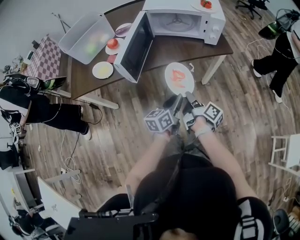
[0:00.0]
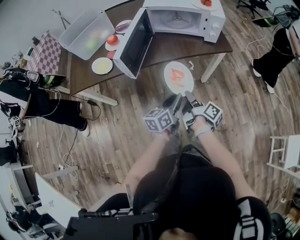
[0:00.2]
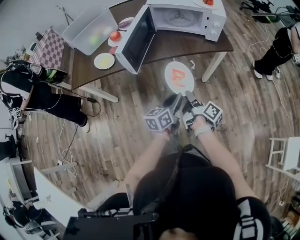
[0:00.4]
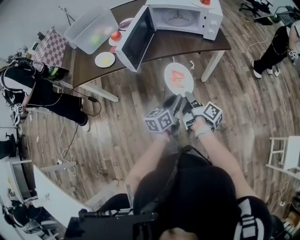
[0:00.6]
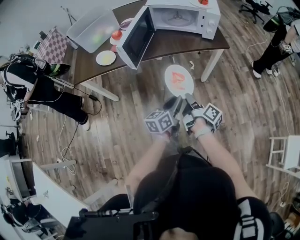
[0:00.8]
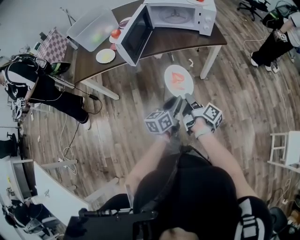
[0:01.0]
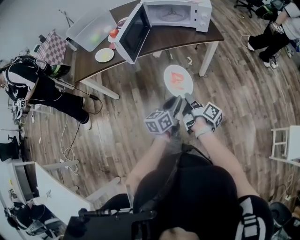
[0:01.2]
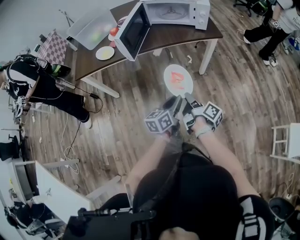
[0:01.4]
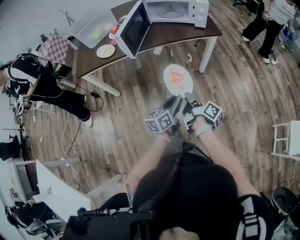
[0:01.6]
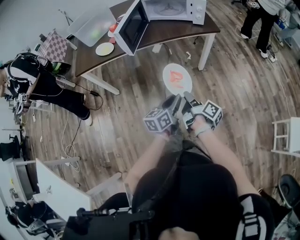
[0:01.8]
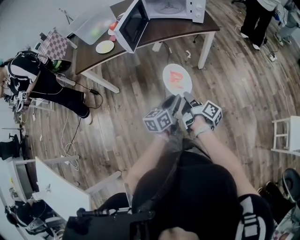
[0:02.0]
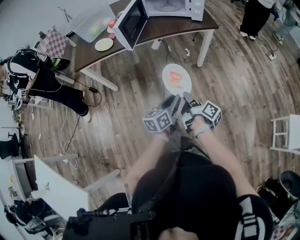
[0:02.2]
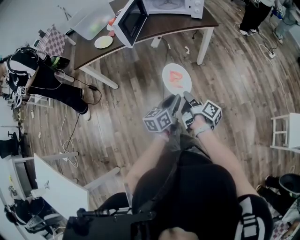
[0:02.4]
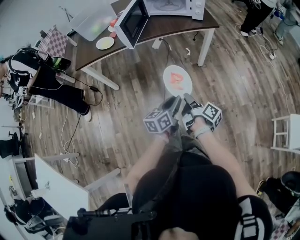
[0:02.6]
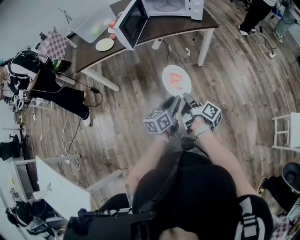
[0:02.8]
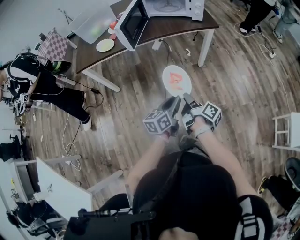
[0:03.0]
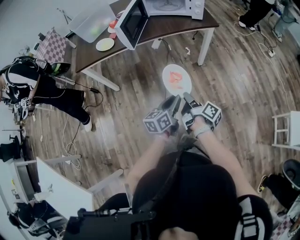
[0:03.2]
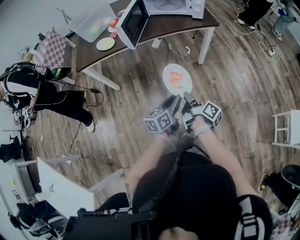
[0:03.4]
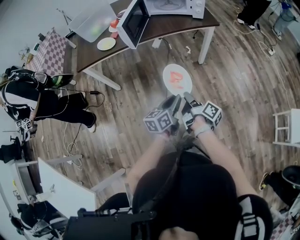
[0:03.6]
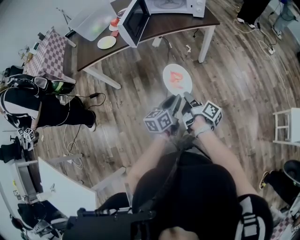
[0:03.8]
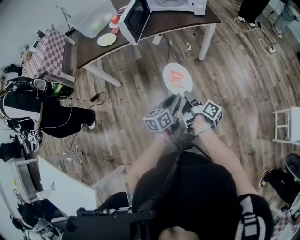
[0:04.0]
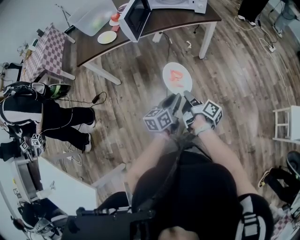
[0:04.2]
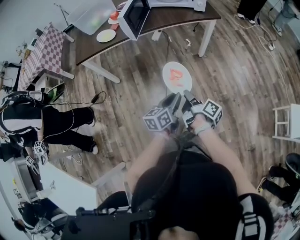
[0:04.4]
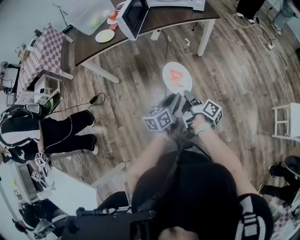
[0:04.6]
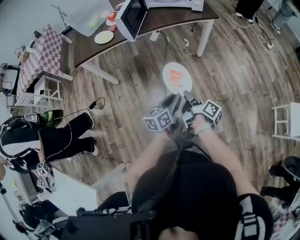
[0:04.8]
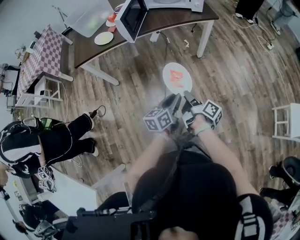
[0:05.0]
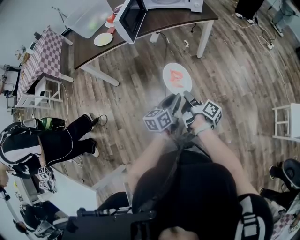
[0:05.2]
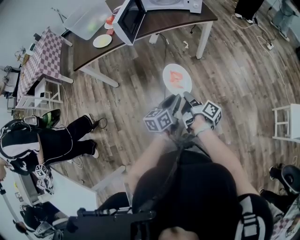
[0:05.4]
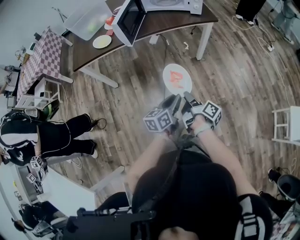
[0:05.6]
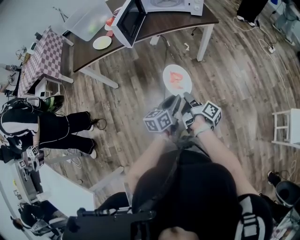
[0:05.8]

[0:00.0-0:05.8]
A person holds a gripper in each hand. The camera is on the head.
0:00.0 to 0:01.4: The two grippers go some 15 cm backward.
0:01.4 to 0:02.8: The two grippers go approximately 10 cm backward.
0:02.8 to 0:04.4: The left gripper moves about 5 cm. Meanwhile the right gripper ends up some 5 cm from where it was.
0:04.4 to 0:05.8: The grippers make only small movements.

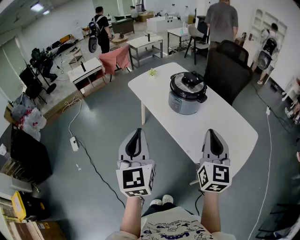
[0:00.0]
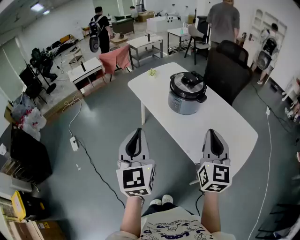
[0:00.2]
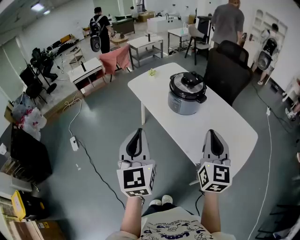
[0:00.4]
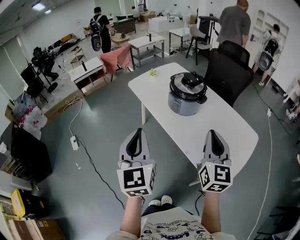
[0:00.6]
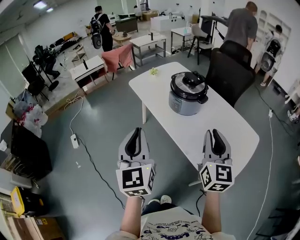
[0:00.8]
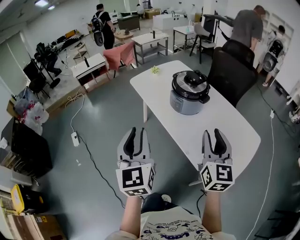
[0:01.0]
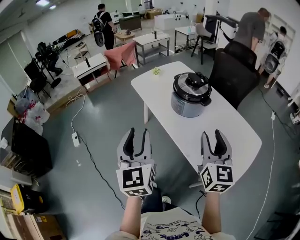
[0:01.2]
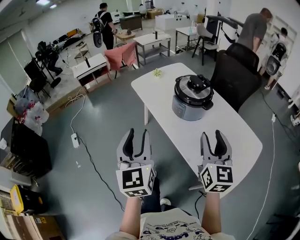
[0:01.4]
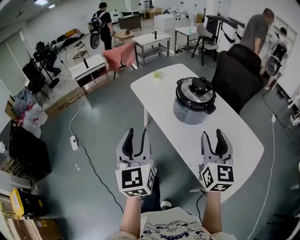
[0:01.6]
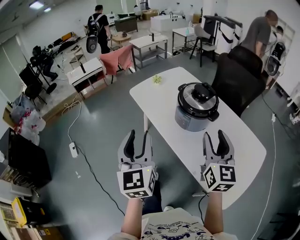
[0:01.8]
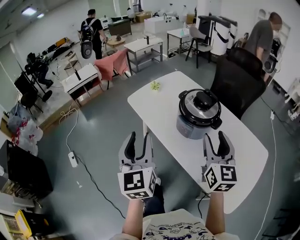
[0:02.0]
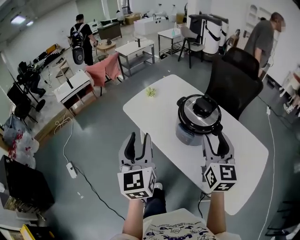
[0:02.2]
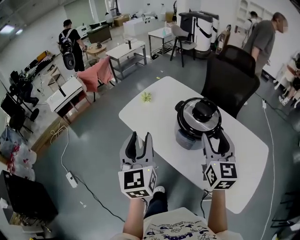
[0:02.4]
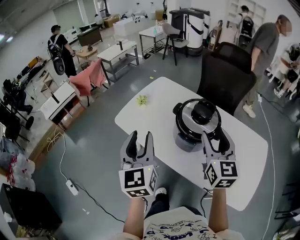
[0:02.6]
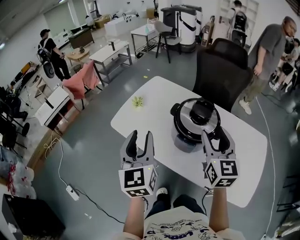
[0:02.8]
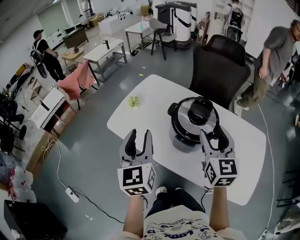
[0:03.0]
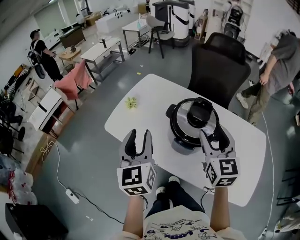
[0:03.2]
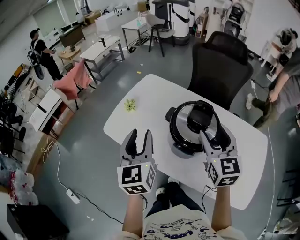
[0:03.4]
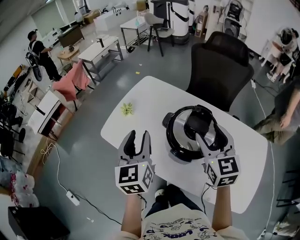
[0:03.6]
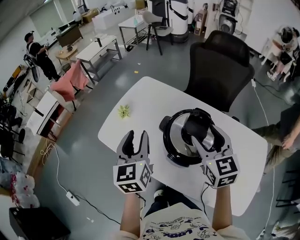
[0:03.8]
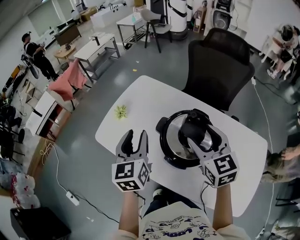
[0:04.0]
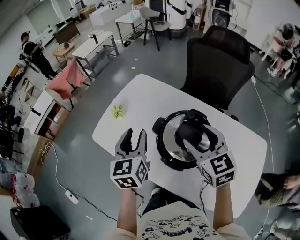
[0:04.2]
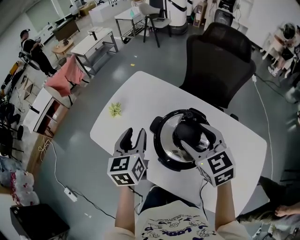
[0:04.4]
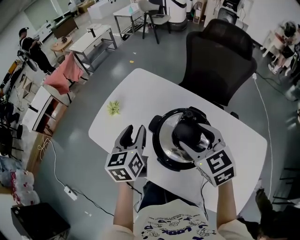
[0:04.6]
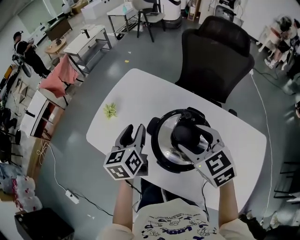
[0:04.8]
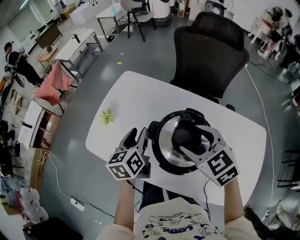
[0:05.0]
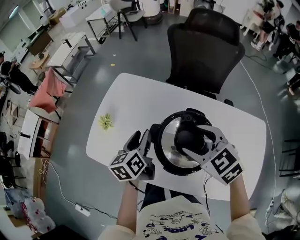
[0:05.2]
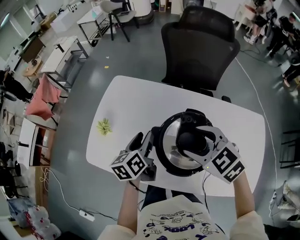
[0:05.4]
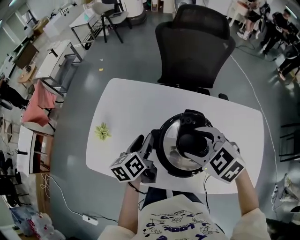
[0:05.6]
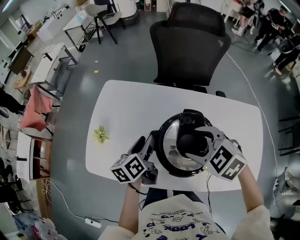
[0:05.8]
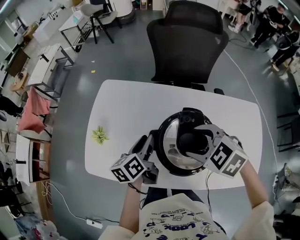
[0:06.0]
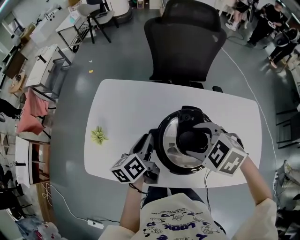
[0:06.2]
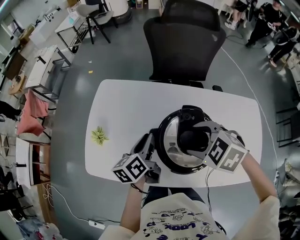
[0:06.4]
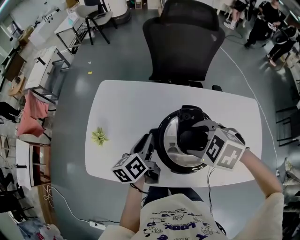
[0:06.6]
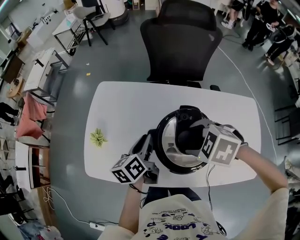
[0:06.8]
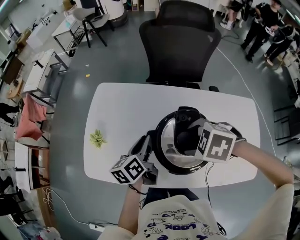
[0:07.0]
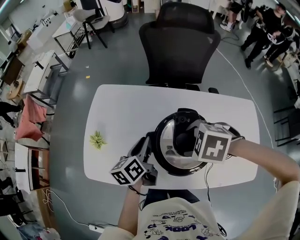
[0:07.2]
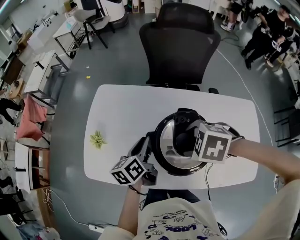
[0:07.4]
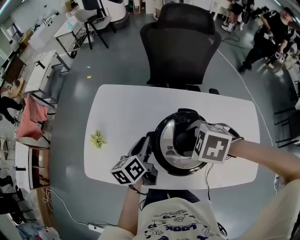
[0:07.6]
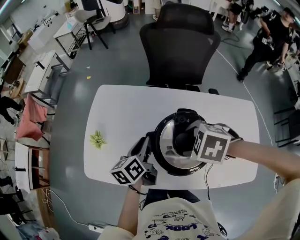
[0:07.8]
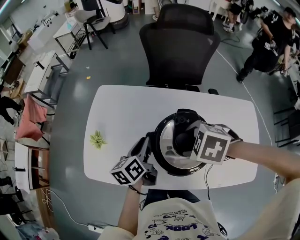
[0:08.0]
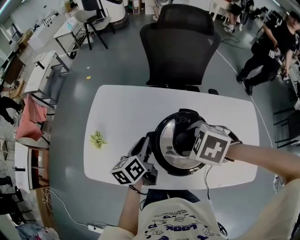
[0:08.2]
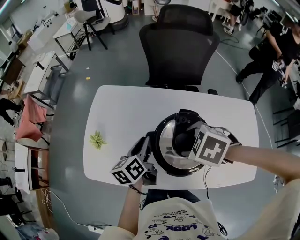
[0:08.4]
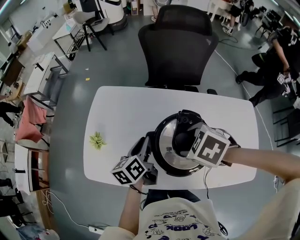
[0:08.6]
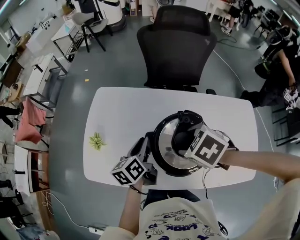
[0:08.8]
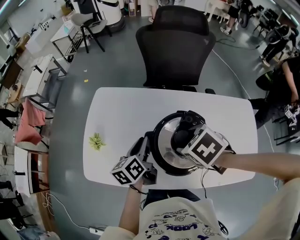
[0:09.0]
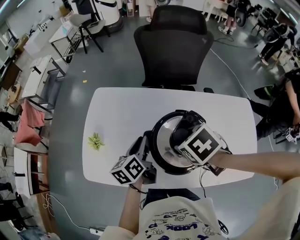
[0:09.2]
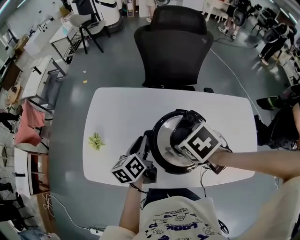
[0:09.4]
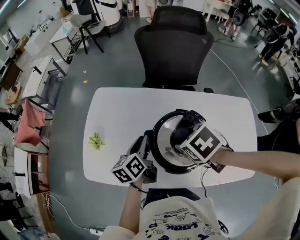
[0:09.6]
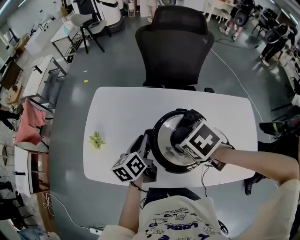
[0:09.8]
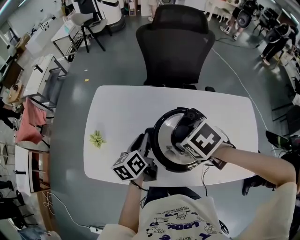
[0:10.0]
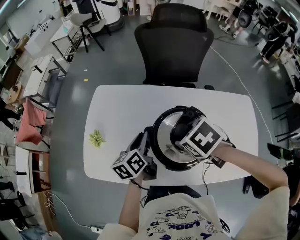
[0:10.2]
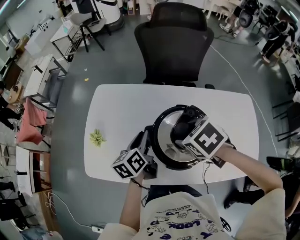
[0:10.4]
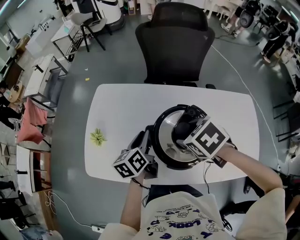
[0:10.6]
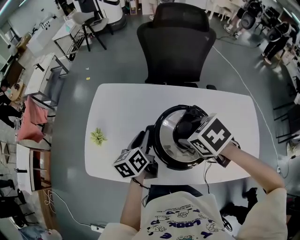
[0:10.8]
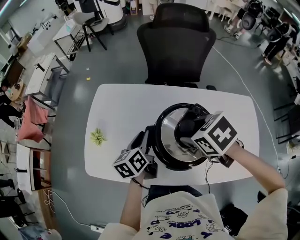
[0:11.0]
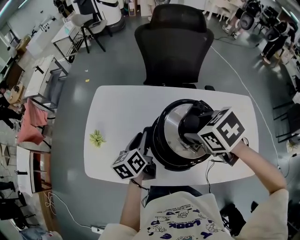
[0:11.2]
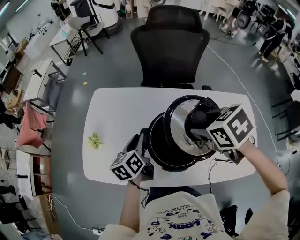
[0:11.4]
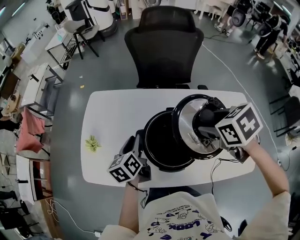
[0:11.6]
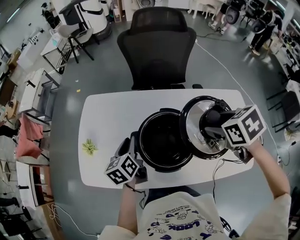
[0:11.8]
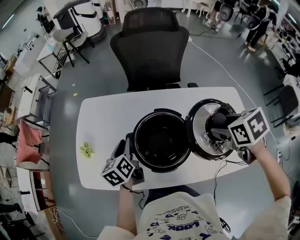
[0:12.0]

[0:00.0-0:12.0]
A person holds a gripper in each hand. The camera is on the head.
0:00.0 to 0:01.6: The grippers both shift forward by roughly 10 cm. The right gripper opens up. The left gripper opens its fingers.
0:01.6 to 0:03.0: Both grippers move forward, approximately 35 cm. The right gripper turns by approximately 20 degrees. The left gripper rotates about 30 degrees.
0:03.0 to 0:04.4: The right gripper travels forward and downward by roughly 15 cm, and rotates approximately 30 degrees, while the left gripper goes roughly 20 cm forward, downward and to the right.
0:04.4 to 0:06.0: The left gripper heads downward, forward and to the right, covering approximately 15 cm, and turns by some 40 degrees; the right gripper travels downward by some 5 cm, and rotates about 30 degrees.
0:06.0 to 0:07.6: The right gripper rotates some 20 degrees.
0:07.6 to 0:09.0: The right gripper turns by approximately 30 degrees.
0:09.0 to 0:10.4: The grippers make only small movements.
0:10.4 to 0:12.0: The right gripper is displaced to the right by some 20 cm, and changes its angle by roughly 30 degrees.

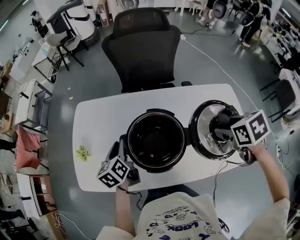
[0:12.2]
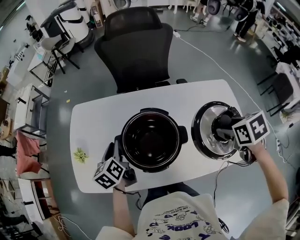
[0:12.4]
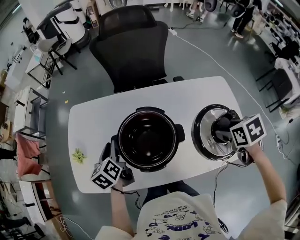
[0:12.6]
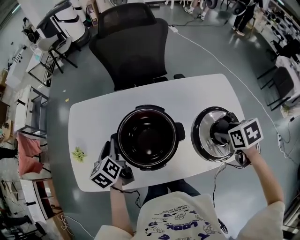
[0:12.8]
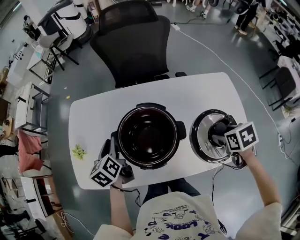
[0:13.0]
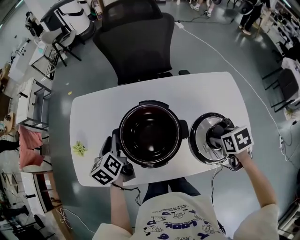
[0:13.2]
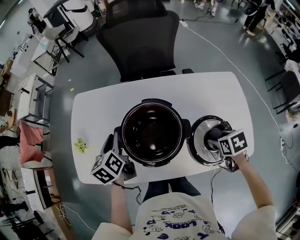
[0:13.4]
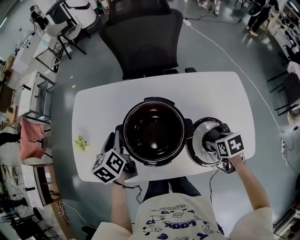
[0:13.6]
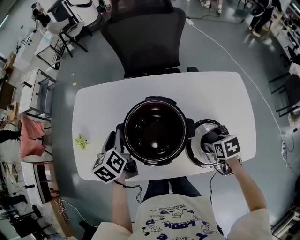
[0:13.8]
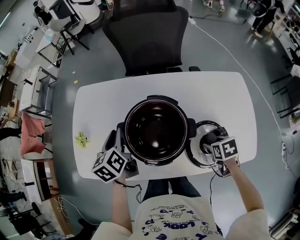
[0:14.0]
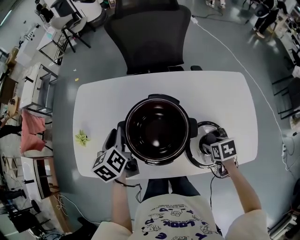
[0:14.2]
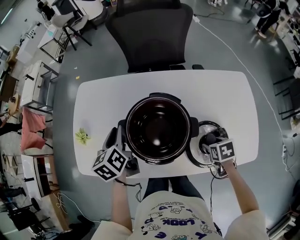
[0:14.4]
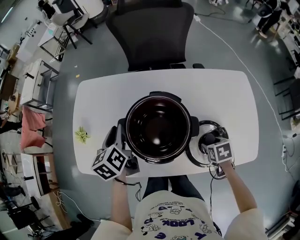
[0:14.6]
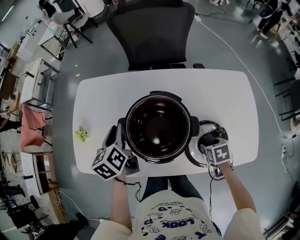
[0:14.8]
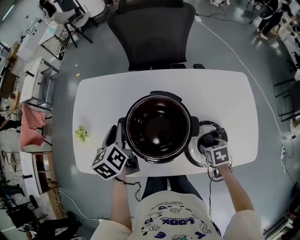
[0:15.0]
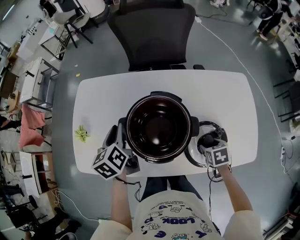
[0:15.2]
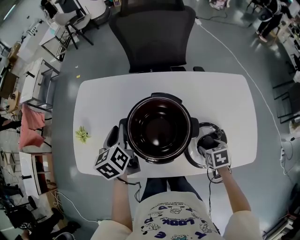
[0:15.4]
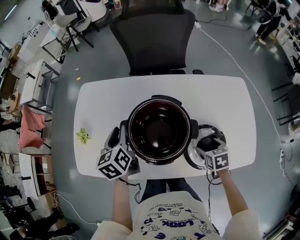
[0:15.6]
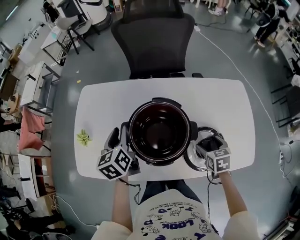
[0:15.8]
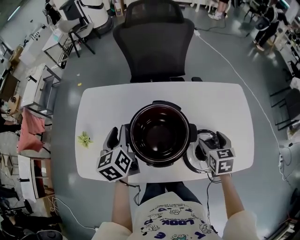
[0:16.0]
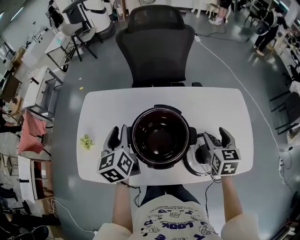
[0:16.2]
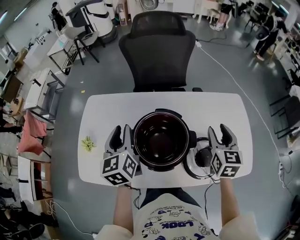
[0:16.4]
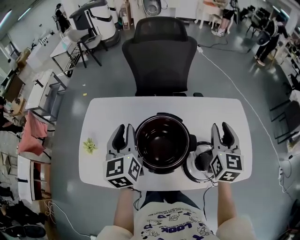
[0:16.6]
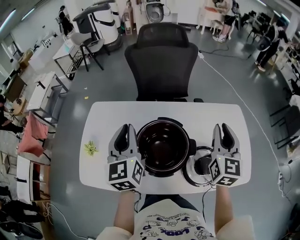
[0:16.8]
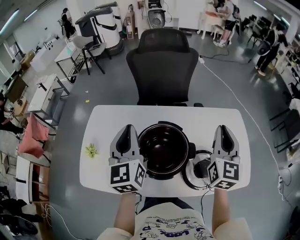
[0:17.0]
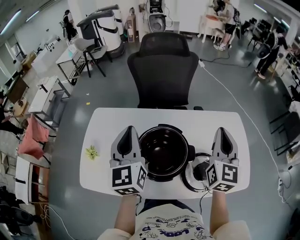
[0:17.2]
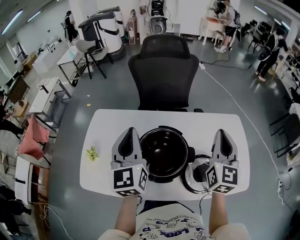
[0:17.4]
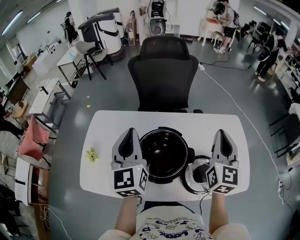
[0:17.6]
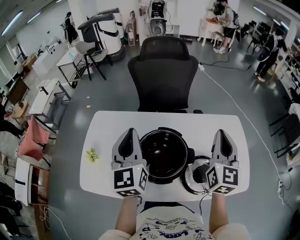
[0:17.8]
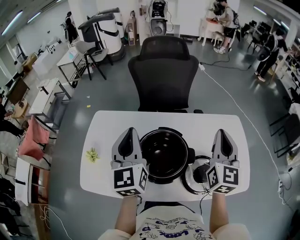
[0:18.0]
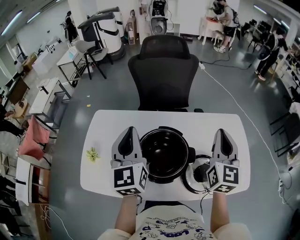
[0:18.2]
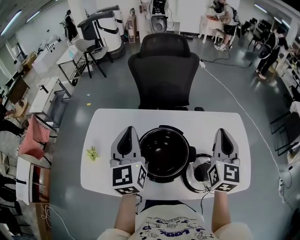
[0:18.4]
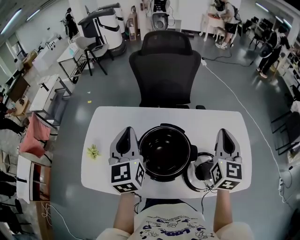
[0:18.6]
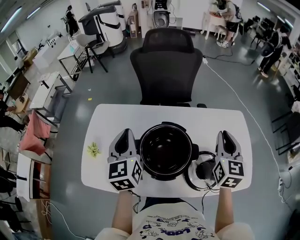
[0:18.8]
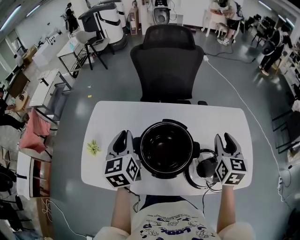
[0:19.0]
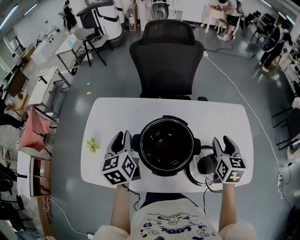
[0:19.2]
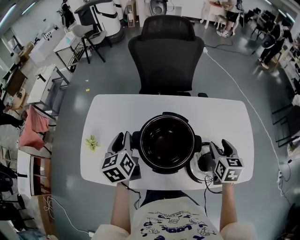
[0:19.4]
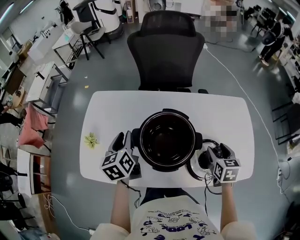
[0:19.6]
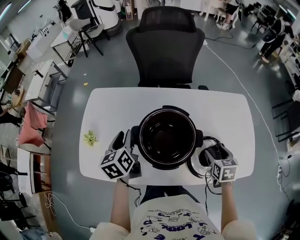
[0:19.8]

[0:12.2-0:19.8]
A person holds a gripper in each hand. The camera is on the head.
0:12.2 to 0:13.8: The right gripper is displaced downward by some 20 cm.
0:13.8 to 0:15.2: The right gripper travels downward by approximately 5 cm.
0:15.2 to 0:16.8: The left gripper is displaced upward by approximately 20 cm, and turns by some 30 degrees. Meanwhile the right gripper goes roughly 30 cm upward, tips its fingers upward by approximately 60 degrees, and closes up.
0:16.8 to 0:18.2: The left gripper travels upward by about 5 cm.
0:18.2 to 0:19.8: Both grippers move downward, about 25 cm. The right gripper angles its fingers downward, by some 50 degrees, and opens its fingers; the left gripper rotates about 40 degrees, and opens its fingers.
